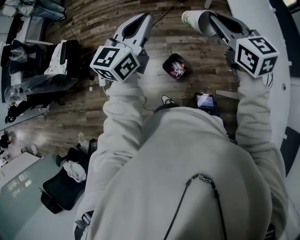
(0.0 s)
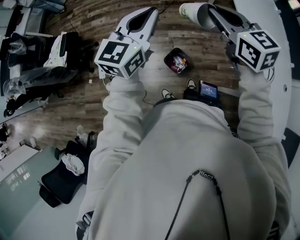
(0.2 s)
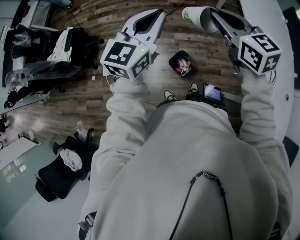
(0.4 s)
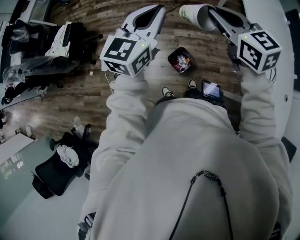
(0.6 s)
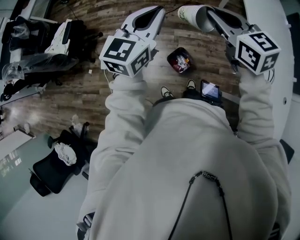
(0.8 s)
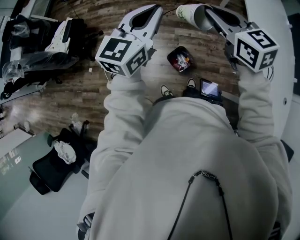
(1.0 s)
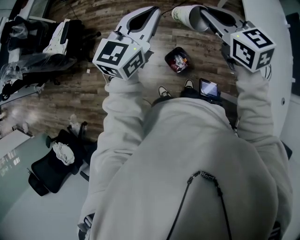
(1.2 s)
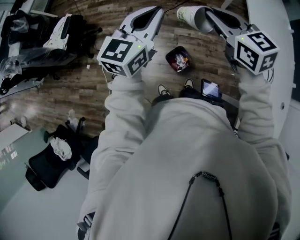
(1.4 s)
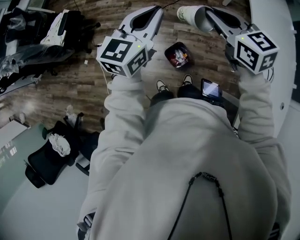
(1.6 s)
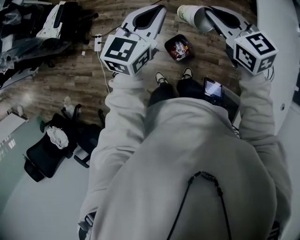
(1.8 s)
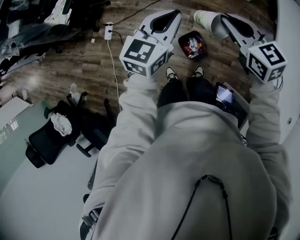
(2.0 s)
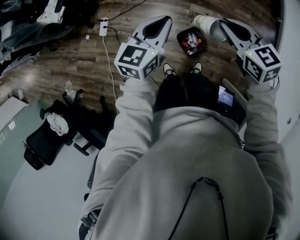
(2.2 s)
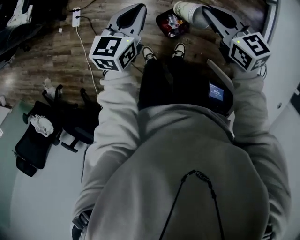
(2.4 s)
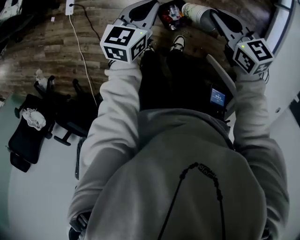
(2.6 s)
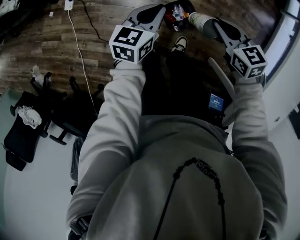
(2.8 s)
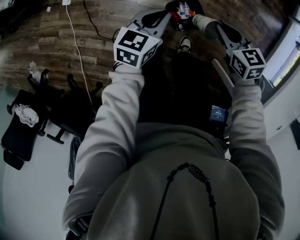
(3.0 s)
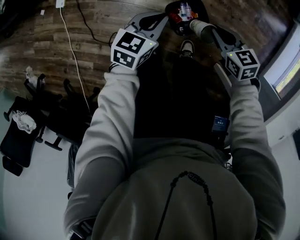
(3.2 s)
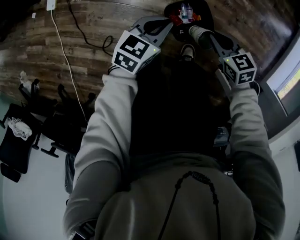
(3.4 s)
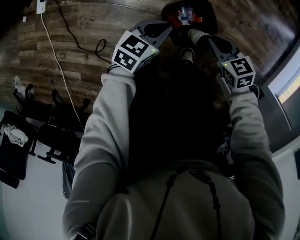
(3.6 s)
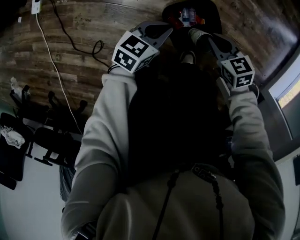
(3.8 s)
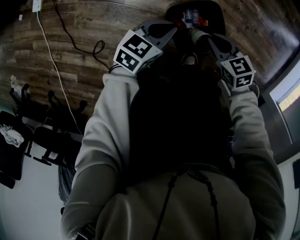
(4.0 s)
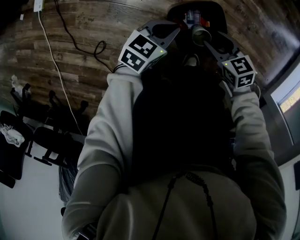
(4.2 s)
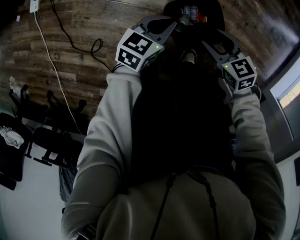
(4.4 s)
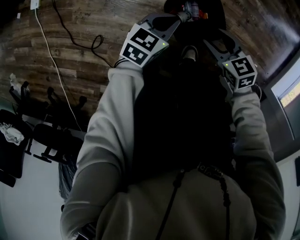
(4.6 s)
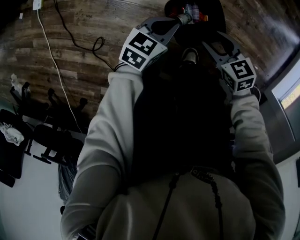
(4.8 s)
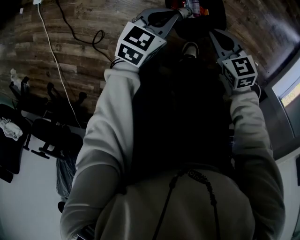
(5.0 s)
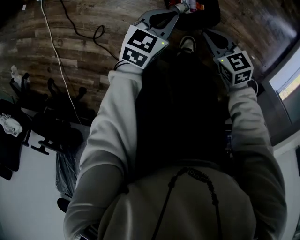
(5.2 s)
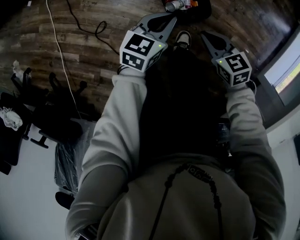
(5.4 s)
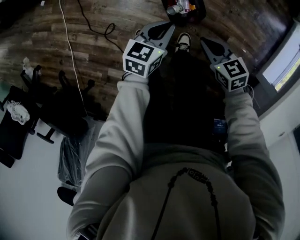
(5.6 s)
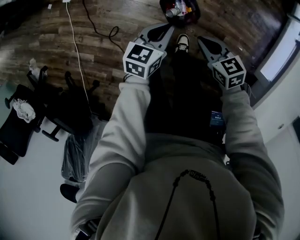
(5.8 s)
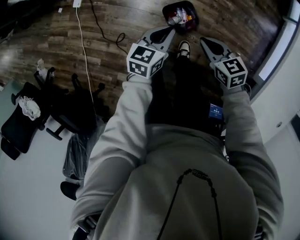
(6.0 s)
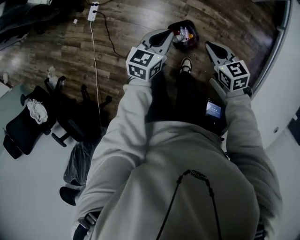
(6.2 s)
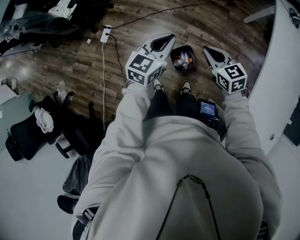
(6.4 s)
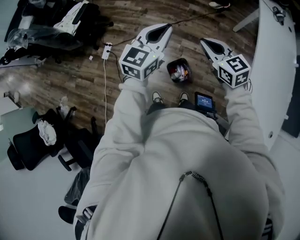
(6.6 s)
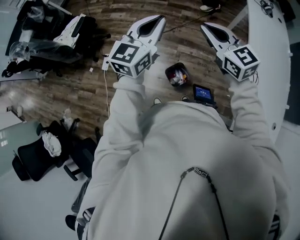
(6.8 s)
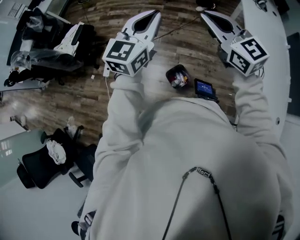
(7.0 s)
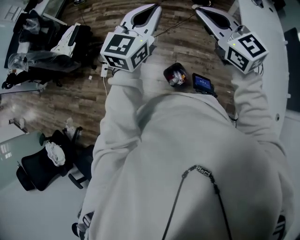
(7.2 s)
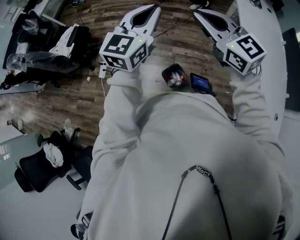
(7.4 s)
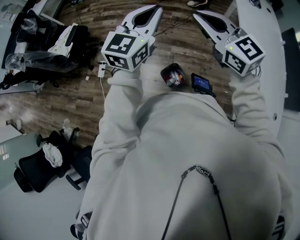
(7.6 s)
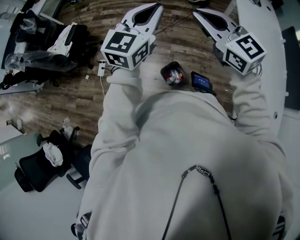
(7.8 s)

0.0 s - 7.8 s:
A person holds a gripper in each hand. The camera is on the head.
0.0 s - 1.6 s: The left gripper moves approximately 5 cm. Meanwhile the right gripper shifts approximately 10 cm to the left, forward and downward.
1.6 s - 3.2 s: Both grippers travel together downward, roughly 60 cm. The right gripper swivels approximately 30 degrees. The left gripper changes its angle by roughly 30 degrees.
3.2 s - 4.6 s: The grippers both shift downward by some 25 cm. The right gripper opens.
4.6 s - 6.2 s: The grippers both shift upward by about 50 cm. The right gripper closes up. Meanwhile the left gripper changes its angle by approximately 20 degrees.
6.2 s - 7.8 s: The grippers both shift upward by some 40 cm. The left gripper turns by roughly 40 degrees. The right gripper points its fingers roughly 40 degrees further upward.

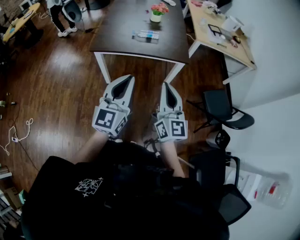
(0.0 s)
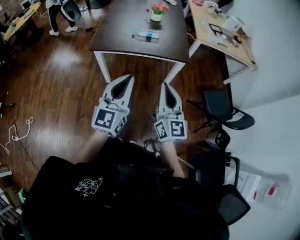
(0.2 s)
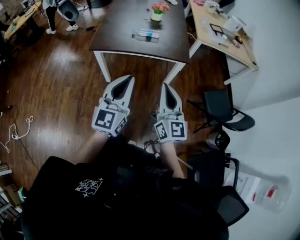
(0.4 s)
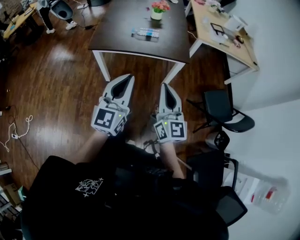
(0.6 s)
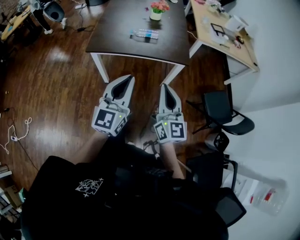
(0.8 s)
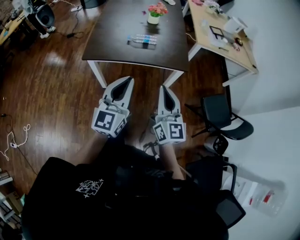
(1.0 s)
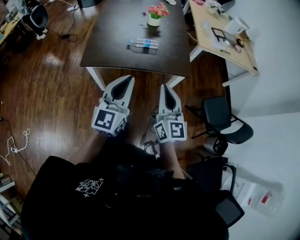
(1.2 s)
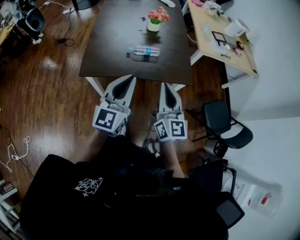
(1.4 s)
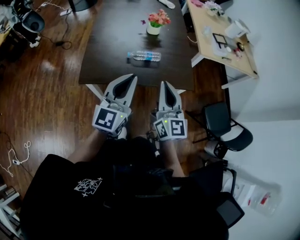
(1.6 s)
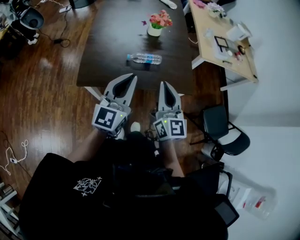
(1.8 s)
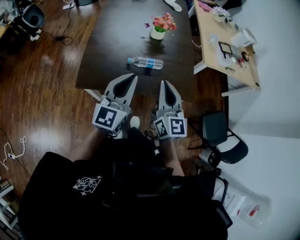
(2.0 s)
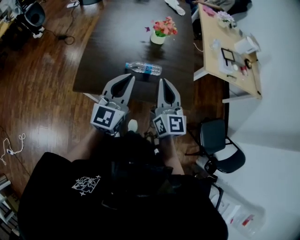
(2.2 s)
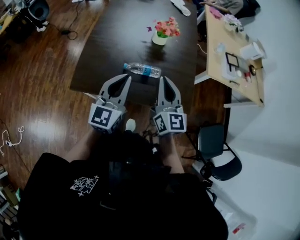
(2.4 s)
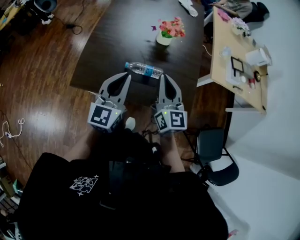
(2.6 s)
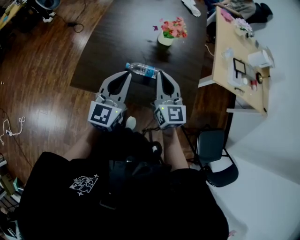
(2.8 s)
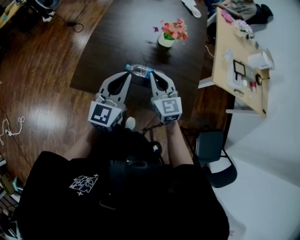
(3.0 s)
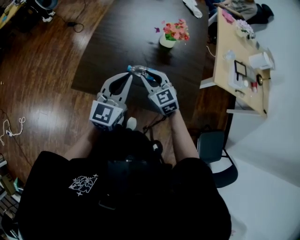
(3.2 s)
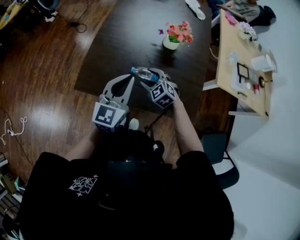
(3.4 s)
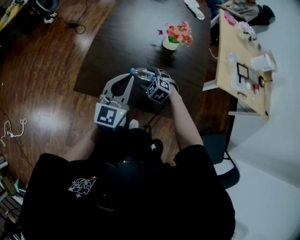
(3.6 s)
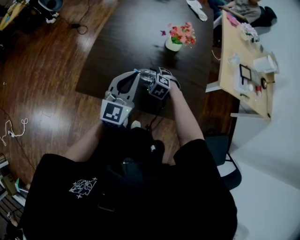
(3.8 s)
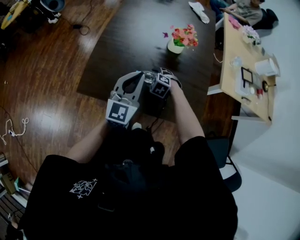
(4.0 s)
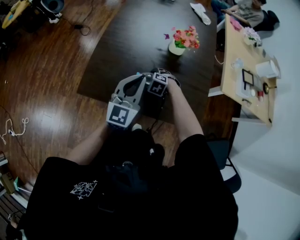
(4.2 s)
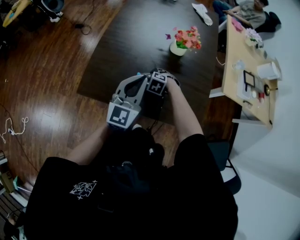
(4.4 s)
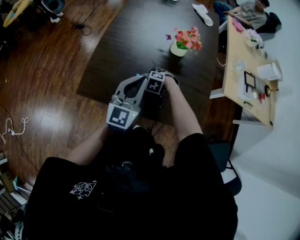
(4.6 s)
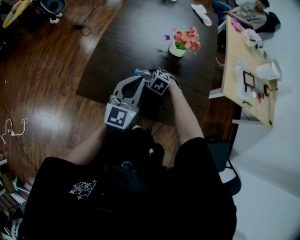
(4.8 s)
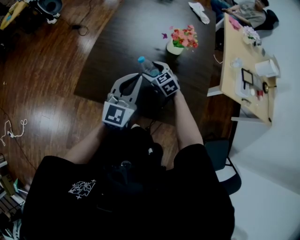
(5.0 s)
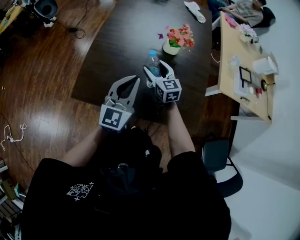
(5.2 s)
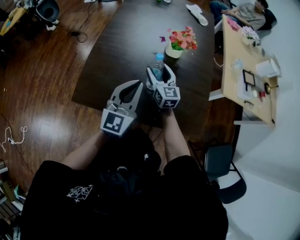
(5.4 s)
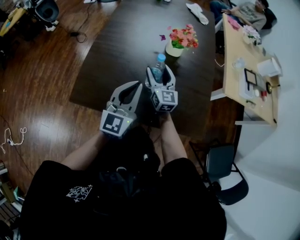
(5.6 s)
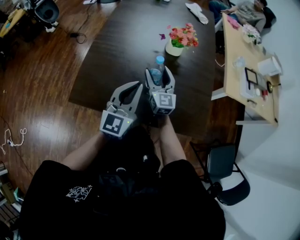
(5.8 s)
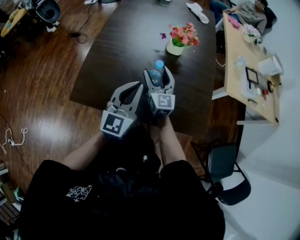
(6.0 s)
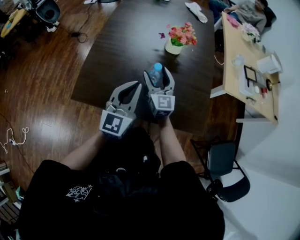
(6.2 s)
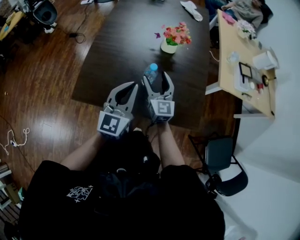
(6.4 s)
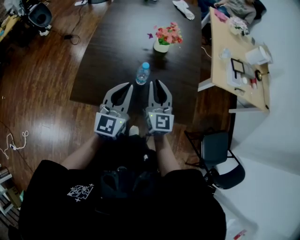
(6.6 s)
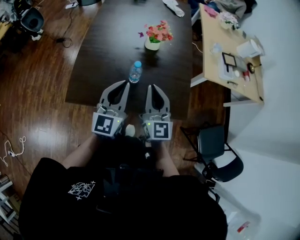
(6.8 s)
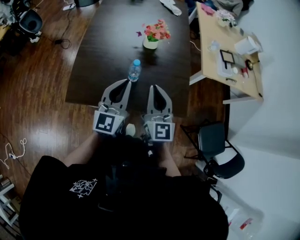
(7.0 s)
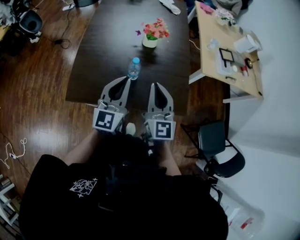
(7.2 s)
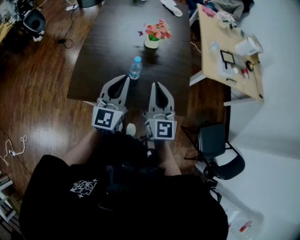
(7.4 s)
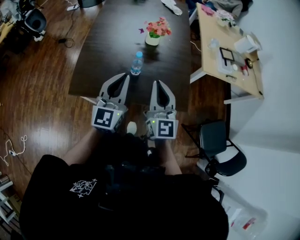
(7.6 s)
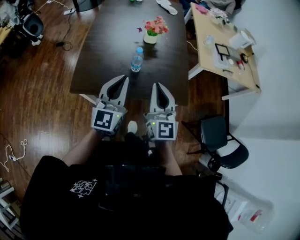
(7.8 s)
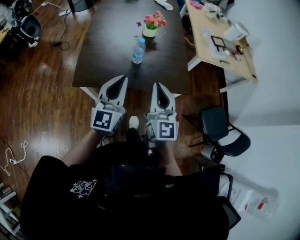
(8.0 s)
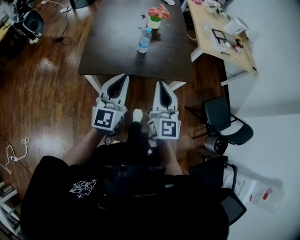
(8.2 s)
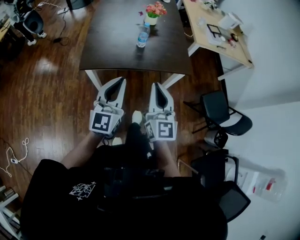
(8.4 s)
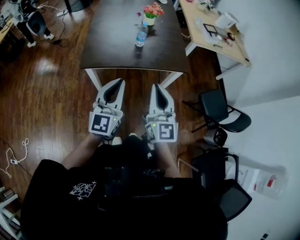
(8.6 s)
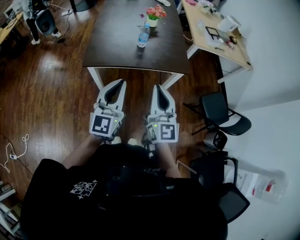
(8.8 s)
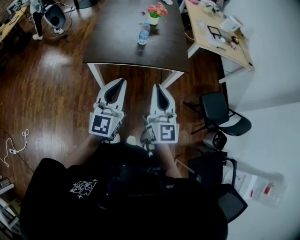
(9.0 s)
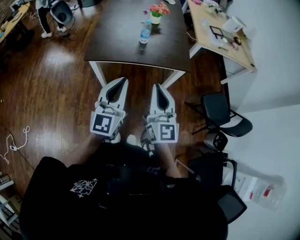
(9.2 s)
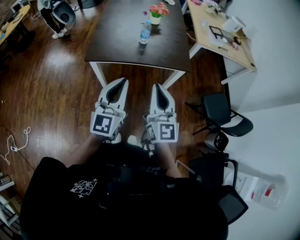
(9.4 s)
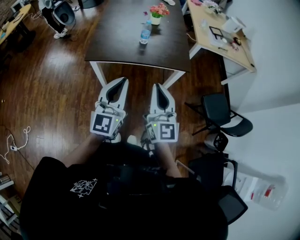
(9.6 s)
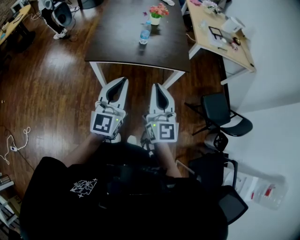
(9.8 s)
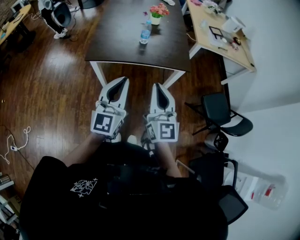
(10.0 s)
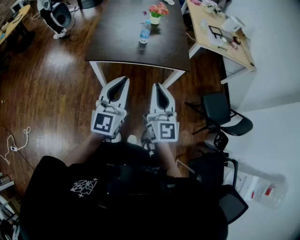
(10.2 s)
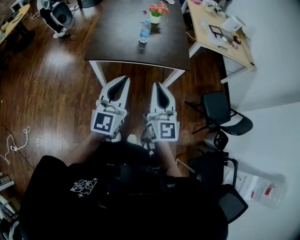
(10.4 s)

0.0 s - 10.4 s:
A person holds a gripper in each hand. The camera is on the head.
0.0 s - 1.4 s: Both grippers move forward, approximately 25 cm.
1.4 s - 3.0 s: The grippers both shift forward by some 25 cm. The right gripper turns by roughly 40 degrees.
3.0 s - 4.4 s: The right gripper travels downward by approximately 25 cm, tips its fingers downward by about 60 degrees, and opens its fingers. Meanwhile the left gripper shifts by some 5 cm.
4.4 s - 6.0 s: The right gripper travels upward by about 15 cm, and tips its fingers upward by approximately 70 degrees.
6.0 s - 7.4 s: The right gripper travels upward, backward and to the right by approximately 30 cm, and closes its fingers; the left gripper shifts approximately 10 cm upward.
7.4 s - 9.0 s: Both grippers travel together backward, some 35 cm.
9.0 s - 10.4 s: The grippers stay close to where they were, moving slightly.

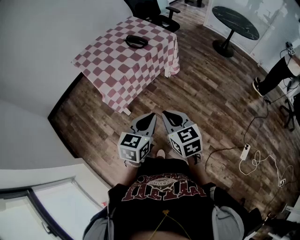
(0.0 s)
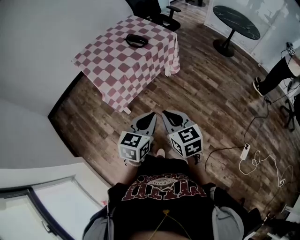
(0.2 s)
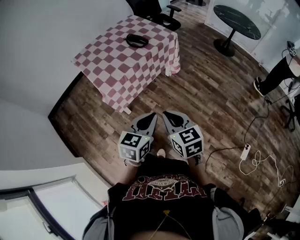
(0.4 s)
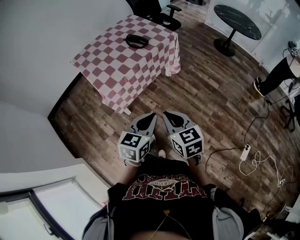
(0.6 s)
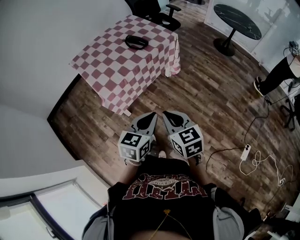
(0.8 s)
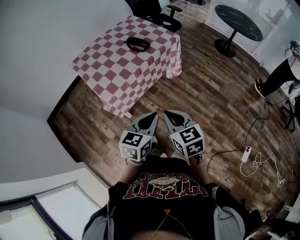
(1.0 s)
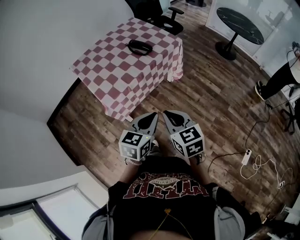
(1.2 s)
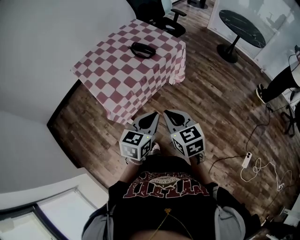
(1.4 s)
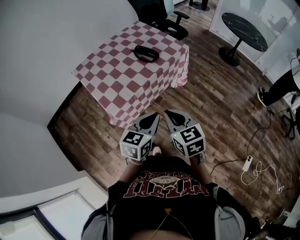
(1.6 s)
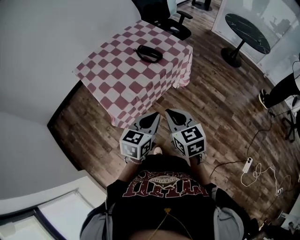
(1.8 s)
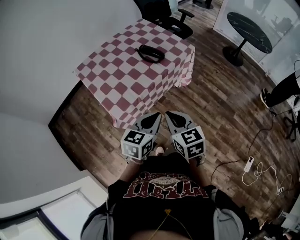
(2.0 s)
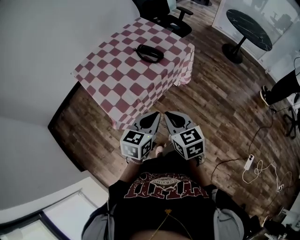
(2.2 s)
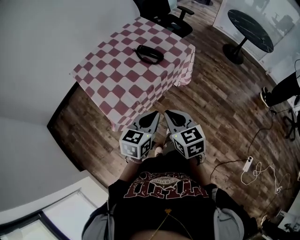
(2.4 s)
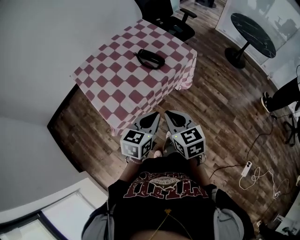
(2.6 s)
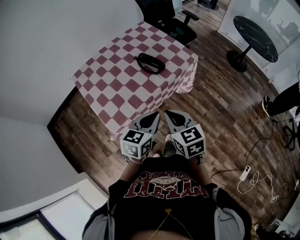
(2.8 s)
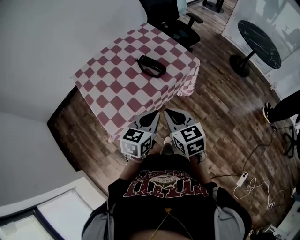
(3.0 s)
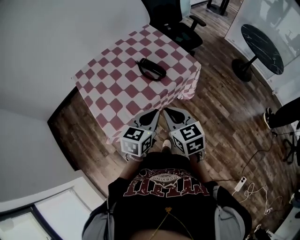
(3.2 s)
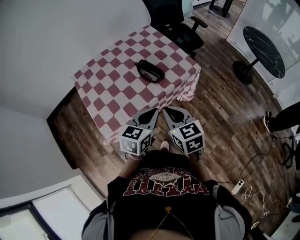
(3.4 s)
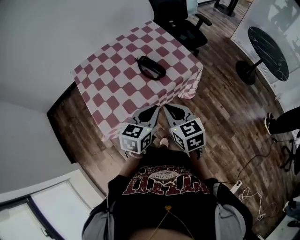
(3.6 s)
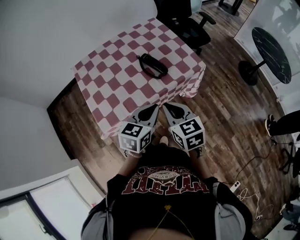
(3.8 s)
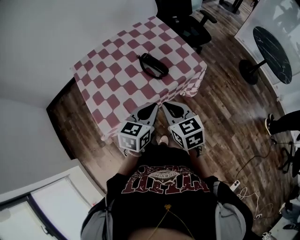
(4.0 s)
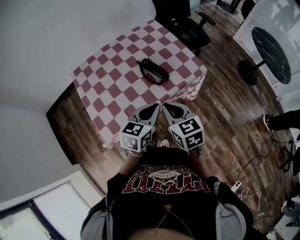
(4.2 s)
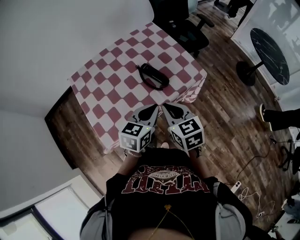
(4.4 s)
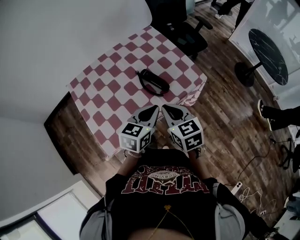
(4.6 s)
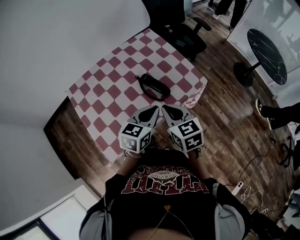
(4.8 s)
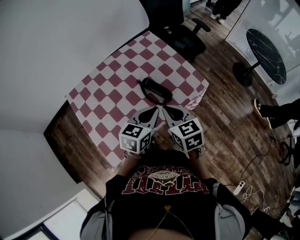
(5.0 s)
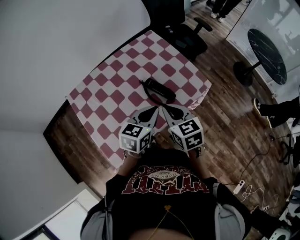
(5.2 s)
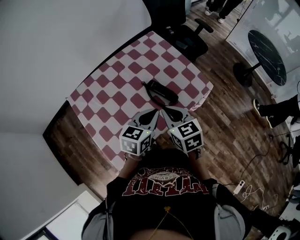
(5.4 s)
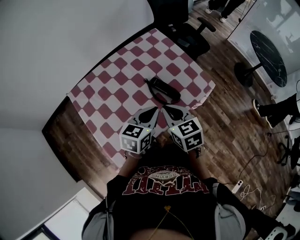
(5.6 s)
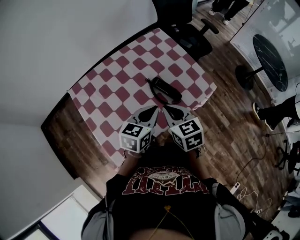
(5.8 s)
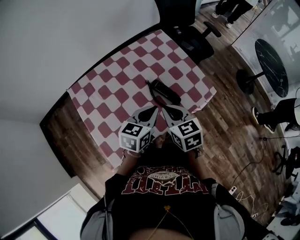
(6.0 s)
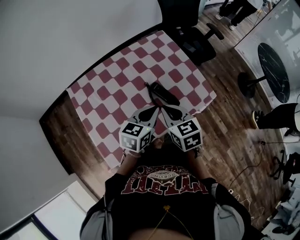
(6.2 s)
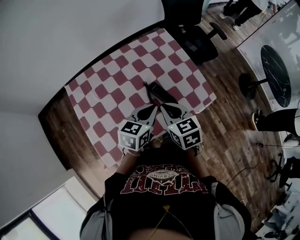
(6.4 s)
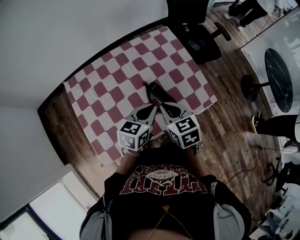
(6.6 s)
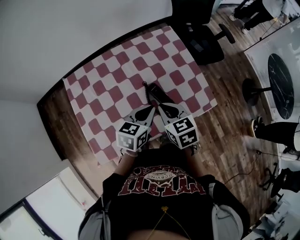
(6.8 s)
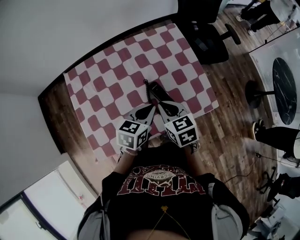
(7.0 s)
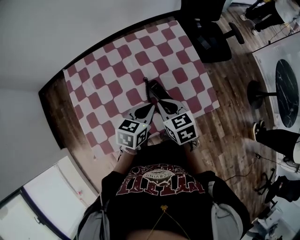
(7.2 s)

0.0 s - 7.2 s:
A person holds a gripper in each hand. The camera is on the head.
0.0 s - 1.4 s: The right gripper moves forward and to the left, about 15 cm; the left gripper is displaced forward by roughly 15 cm.
1.4 s - 2.8 s: Both grippers travel together forward, roughly 15 cm.
2.8 s - 4.4 s: The two grippers go roughly 15 cm forward.
4.4 s - 5.8 s: The two grippers go approximately 10 cm forward and to the left.
5.8 s - 7.2 s: Both grippers travel together forward and downward, roughly 10 cm.
